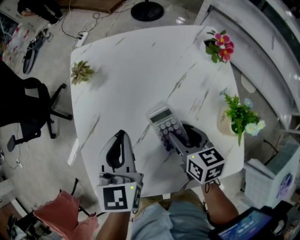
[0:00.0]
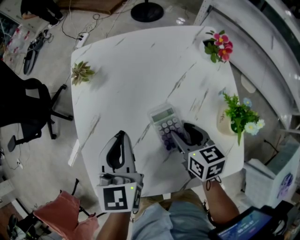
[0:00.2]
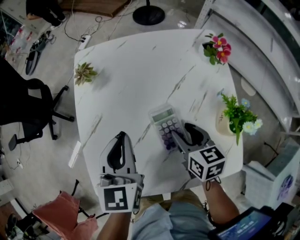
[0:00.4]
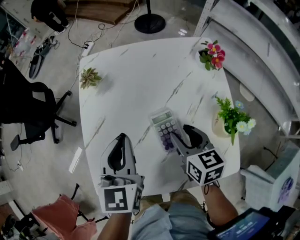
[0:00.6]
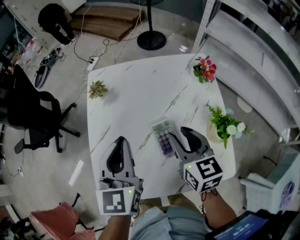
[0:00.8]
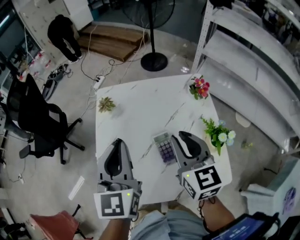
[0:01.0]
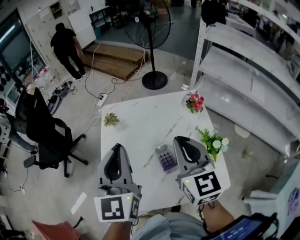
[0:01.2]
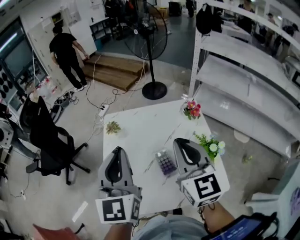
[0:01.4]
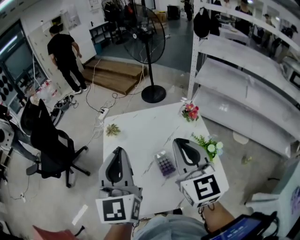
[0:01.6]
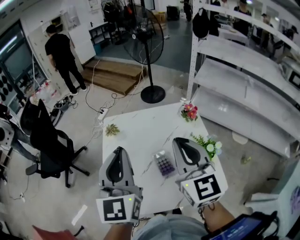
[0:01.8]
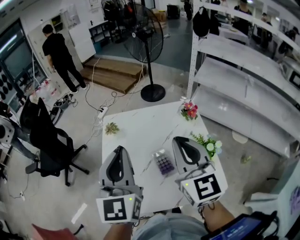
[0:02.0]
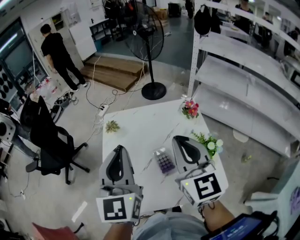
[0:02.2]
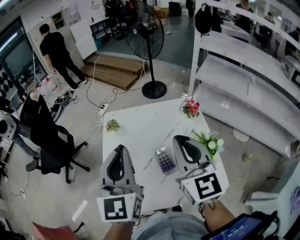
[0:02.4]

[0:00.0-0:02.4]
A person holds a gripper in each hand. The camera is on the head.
0:00.0 to 0:01.2: The two grippers go some 25 cm upward. The left gripper changes its angle by roughly 30 degrees, while the right gripper tips its fingers upward by roughly 30 degrees, and closes up.
0:01.2 to 0:02.4: The right gripper ends up approximately 5 cm from where it was.

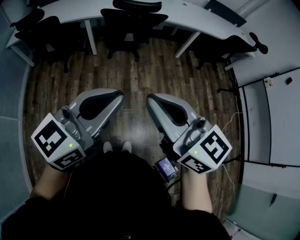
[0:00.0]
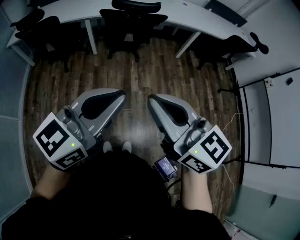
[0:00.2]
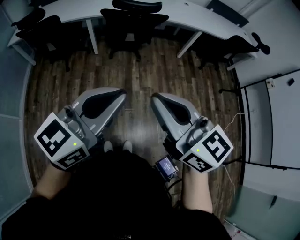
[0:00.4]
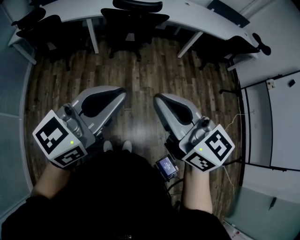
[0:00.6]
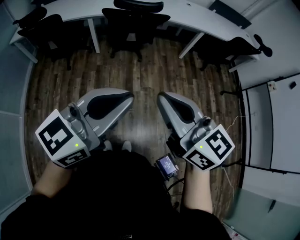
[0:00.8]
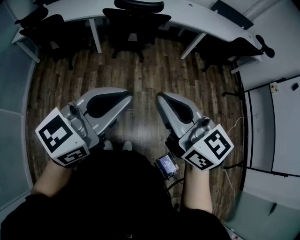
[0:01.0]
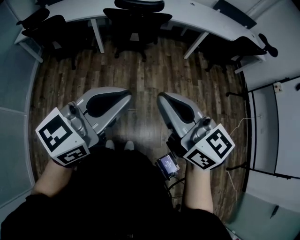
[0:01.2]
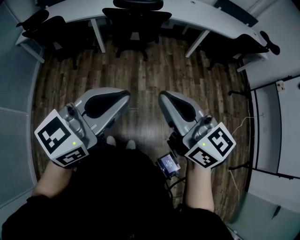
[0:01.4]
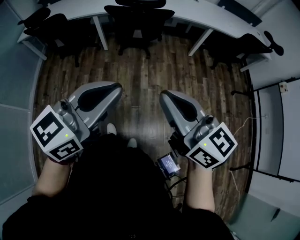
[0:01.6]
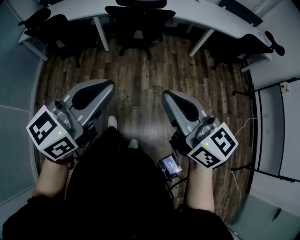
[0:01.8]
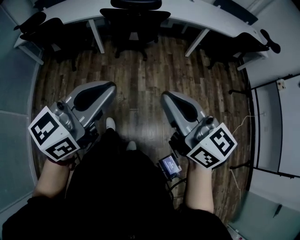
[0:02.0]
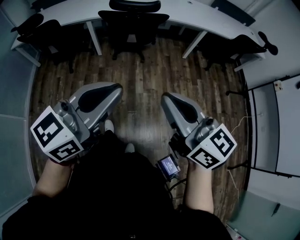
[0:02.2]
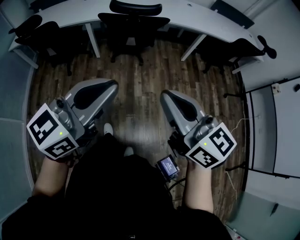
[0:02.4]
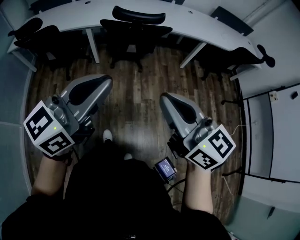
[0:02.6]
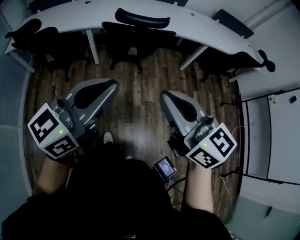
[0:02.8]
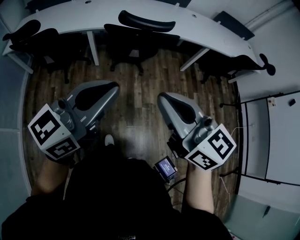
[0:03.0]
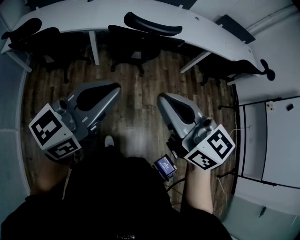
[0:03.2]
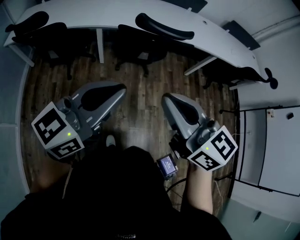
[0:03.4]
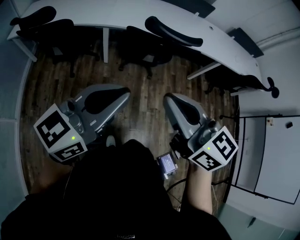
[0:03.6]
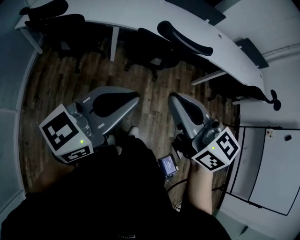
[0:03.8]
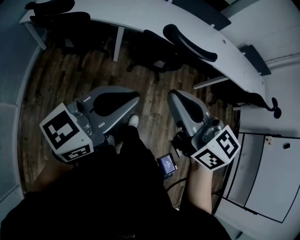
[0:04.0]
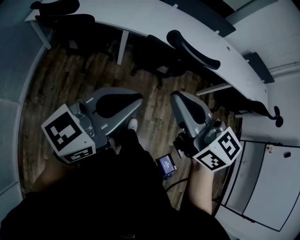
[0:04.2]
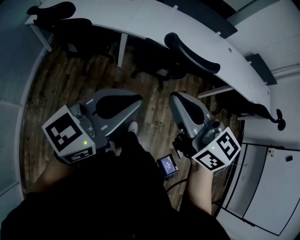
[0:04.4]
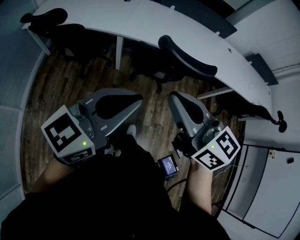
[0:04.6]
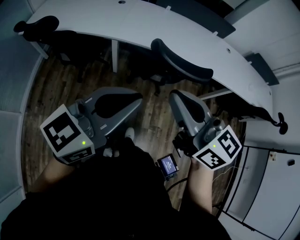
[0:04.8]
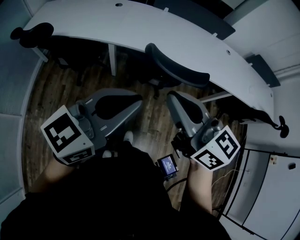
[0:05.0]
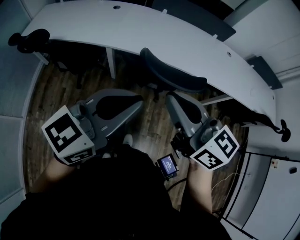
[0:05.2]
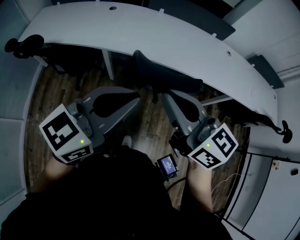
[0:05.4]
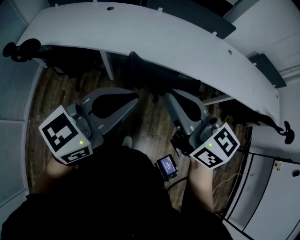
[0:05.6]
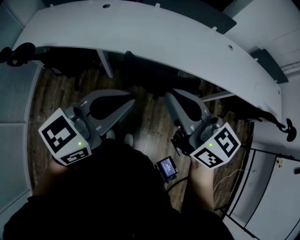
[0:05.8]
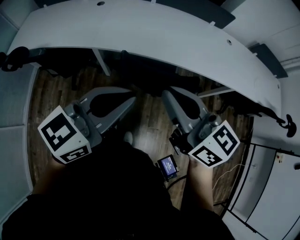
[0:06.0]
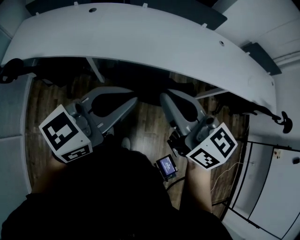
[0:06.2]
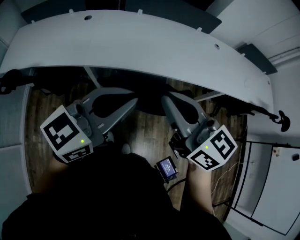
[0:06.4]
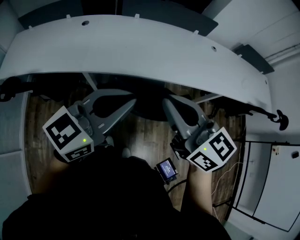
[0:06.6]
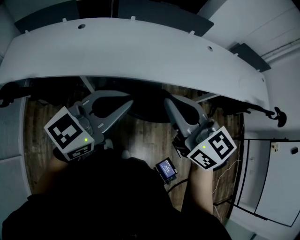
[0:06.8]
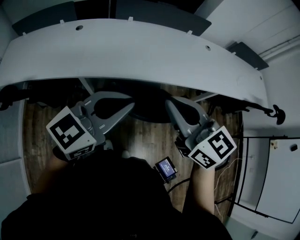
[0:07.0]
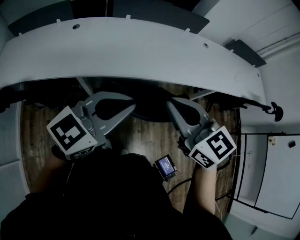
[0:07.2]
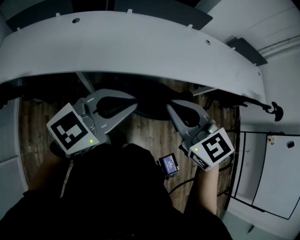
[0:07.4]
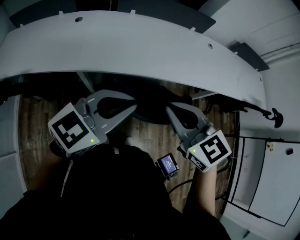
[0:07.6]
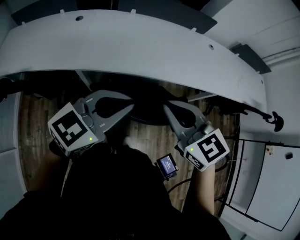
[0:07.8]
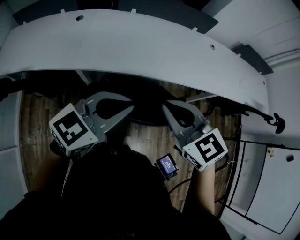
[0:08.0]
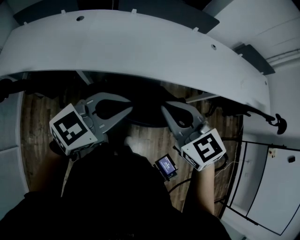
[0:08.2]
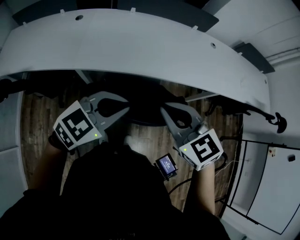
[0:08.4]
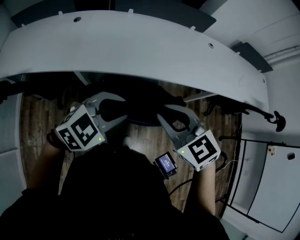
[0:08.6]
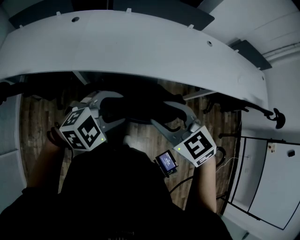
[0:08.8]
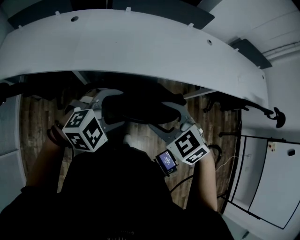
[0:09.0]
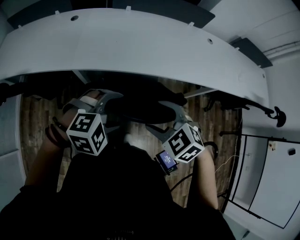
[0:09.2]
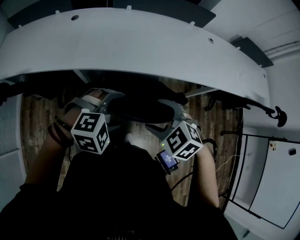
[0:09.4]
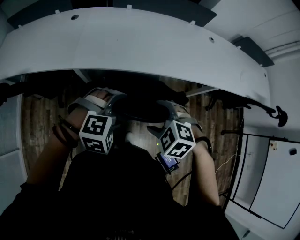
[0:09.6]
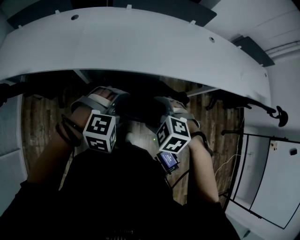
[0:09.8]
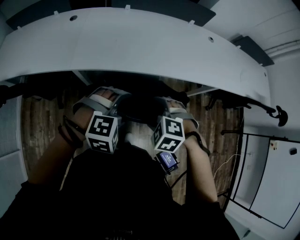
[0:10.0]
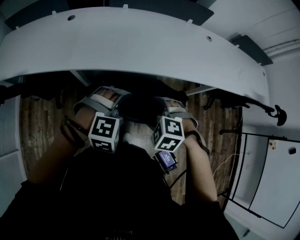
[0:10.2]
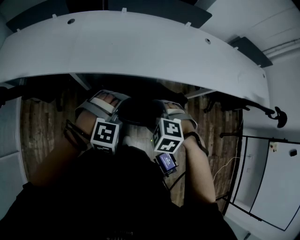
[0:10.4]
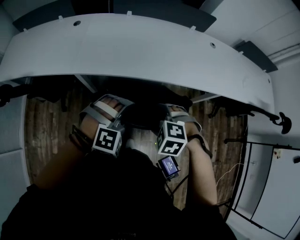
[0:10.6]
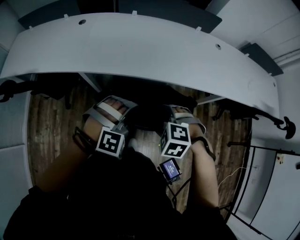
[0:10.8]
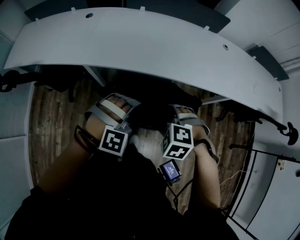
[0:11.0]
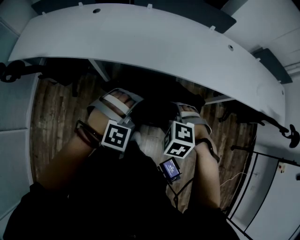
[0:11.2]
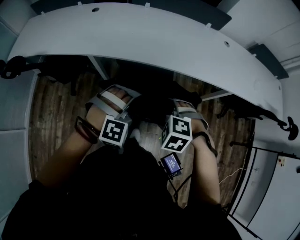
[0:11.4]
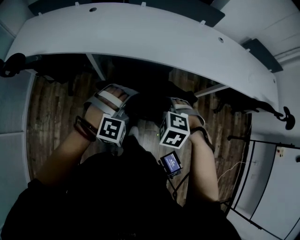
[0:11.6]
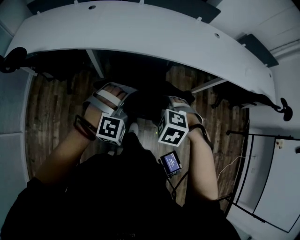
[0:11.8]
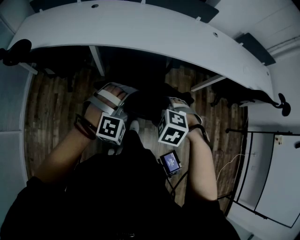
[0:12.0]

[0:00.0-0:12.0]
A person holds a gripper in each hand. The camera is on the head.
0:00.0 to 0:01.6: The right gripper shifts some 10 cm to the right, while the left gripper travels to the right by about 5 cm.
0:01.6 to 0:03.0: Both grippers move forward and to the left, about 25 cm.
0:03.0 to 0:04.4: Both grippers travel together forward and to the left, roughly 20 cm.
0:04.4 to 0:06.0: The grippers both shift forward and to the right by some 30 cm.
0:06.0 to 0:07.6: Both grippers travel together forward, approximately 10 cm. The right gripper rotates some 30 degrees.
0:07.6 to 0:09.0: The two grippers go some 10 cm downward. The left gripper tilts its fingers about 30 degrees downward, and opens up. Meanwhile the right gripper changes its angle by some 30 degrees, and opens.
0:09.0 to 0:10.4: The left gripper shifts roughly 5 cm downward, and rotates about 30 degrees; the right gripper shifts some 10 cm downward, and changes its angle by about 30 degrees.
0:10.4 to 0:12.0: The grippers both shift backward by approximately 20 cm. The left gripper closes up.

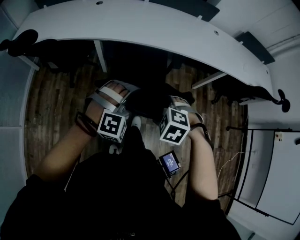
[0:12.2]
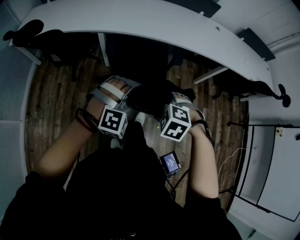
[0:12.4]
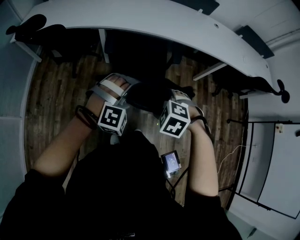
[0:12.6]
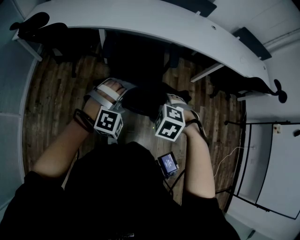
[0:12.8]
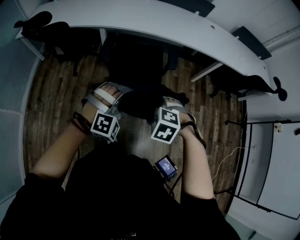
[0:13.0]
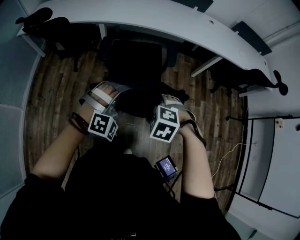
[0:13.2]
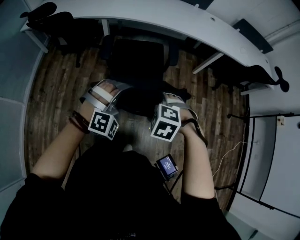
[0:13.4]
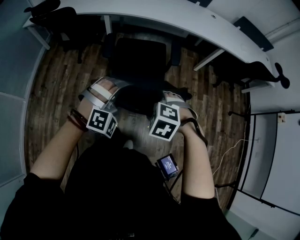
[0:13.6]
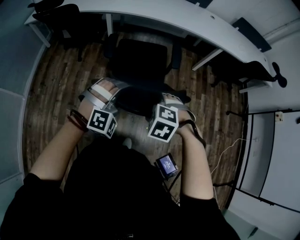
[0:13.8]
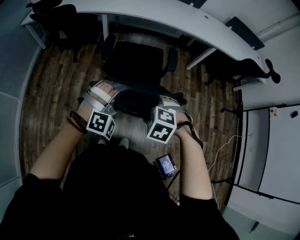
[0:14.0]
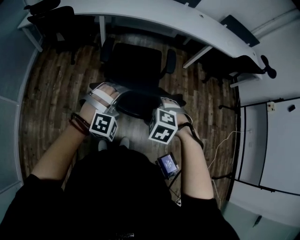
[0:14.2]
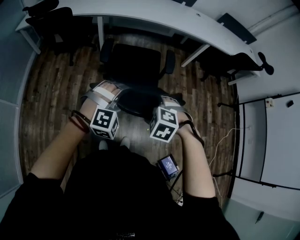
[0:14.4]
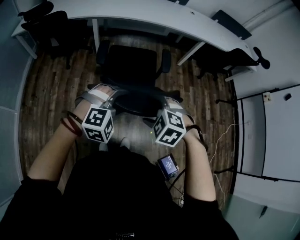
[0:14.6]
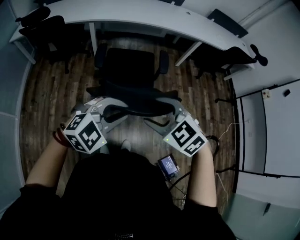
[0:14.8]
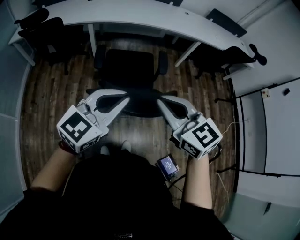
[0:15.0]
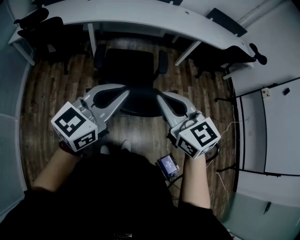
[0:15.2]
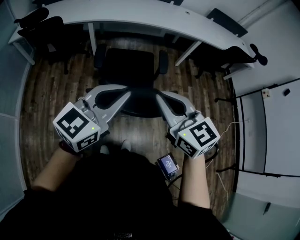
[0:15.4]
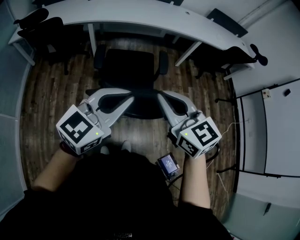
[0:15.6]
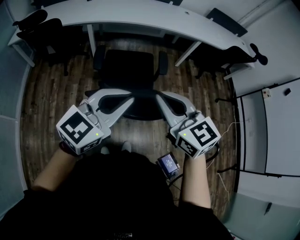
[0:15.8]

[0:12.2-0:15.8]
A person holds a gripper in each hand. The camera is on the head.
0:12.2 to 0:14.0: The grippers both shift backward by roughly 40 cm.
0:14.0 to 0:15.8: The two grippers go approximately 20 cm upward. The right gripper tilts its fingers approximately 50 degrees upward, and closes; the left gripper rolls counterclockwise, seen from behind, by roughly 60 degrees, and closes its fingers.

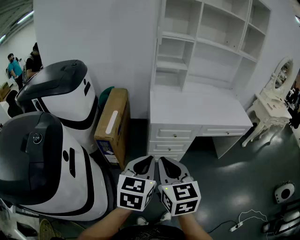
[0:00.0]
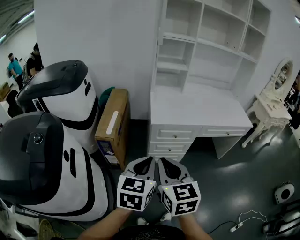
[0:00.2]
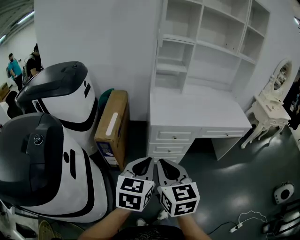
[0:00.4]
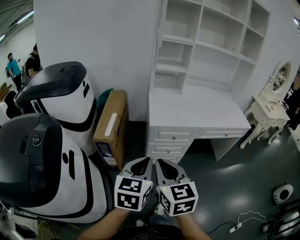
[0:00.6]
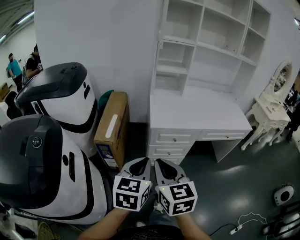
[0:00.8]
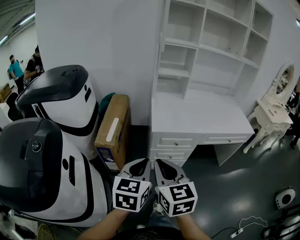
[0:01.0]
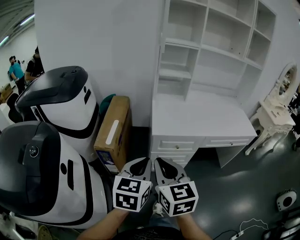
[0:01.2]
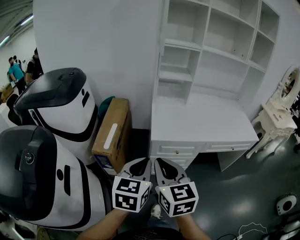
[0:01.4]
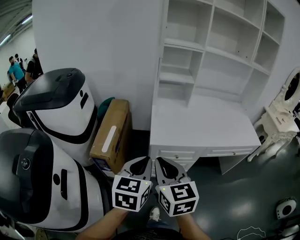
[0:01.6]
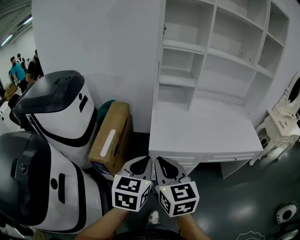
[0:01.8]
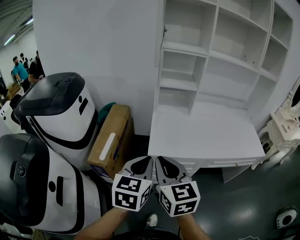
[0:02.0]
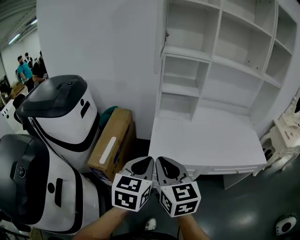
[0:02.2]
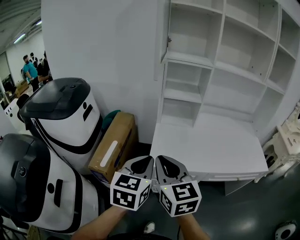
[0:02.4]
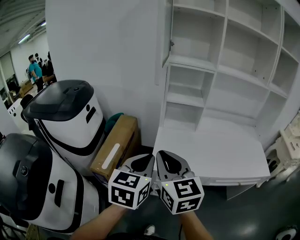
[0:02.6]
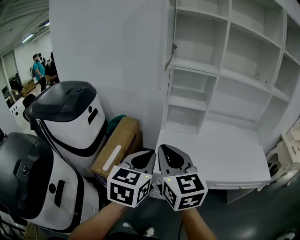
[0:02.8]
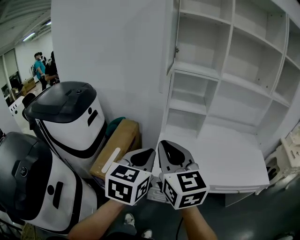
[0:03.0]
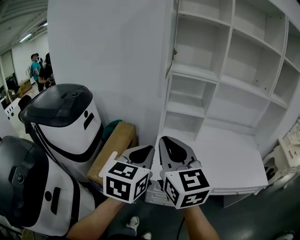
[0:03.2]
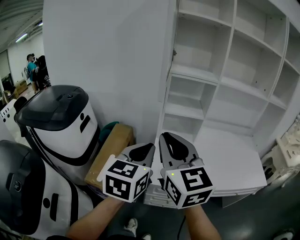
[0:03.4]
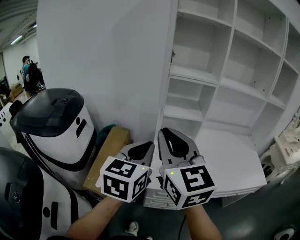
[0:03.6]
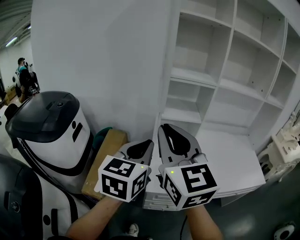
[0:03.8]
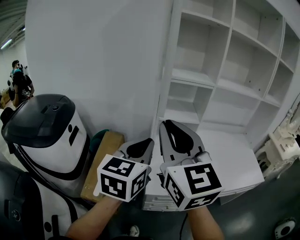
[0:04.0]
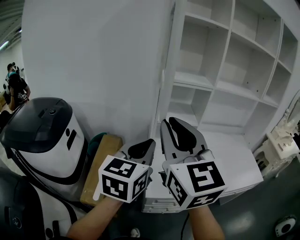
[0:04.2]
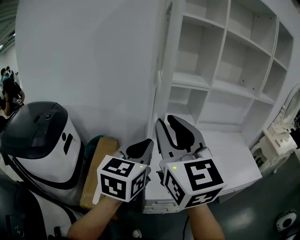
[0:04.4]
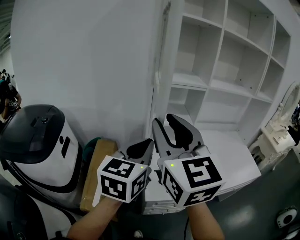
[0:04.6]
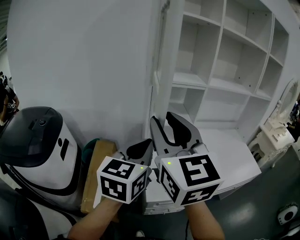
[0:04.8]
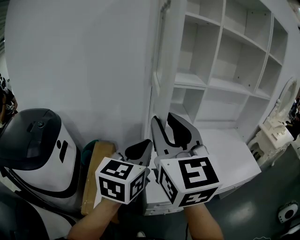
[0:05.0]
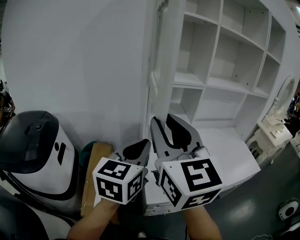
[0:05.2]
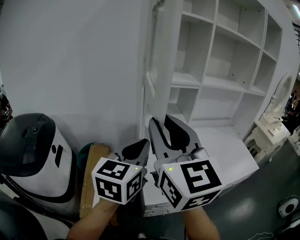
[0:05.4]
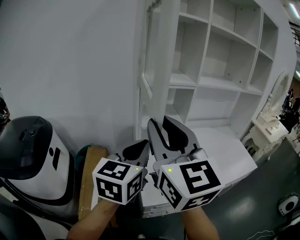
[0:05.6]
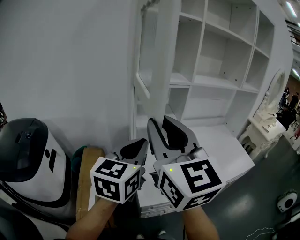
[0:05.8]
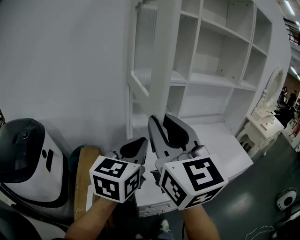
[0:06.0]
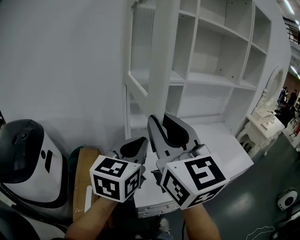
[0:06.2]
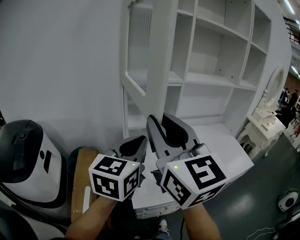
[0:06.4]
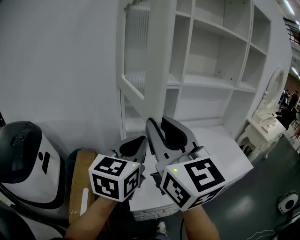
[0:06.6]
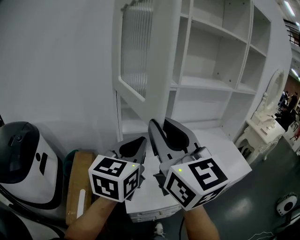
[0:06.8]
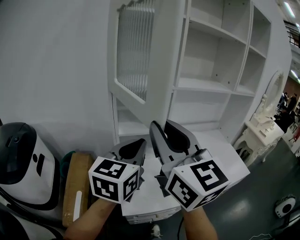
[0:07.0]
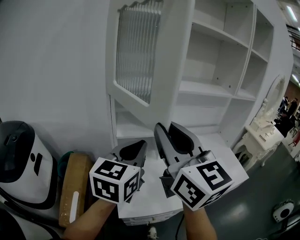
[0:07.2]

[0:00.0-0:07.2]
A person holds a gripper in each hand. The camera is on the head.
0:00.0 to 0:01.4: Both grippers travel together forward, about 10 cm.
0:01.4 to 0:02.8: The two grippers go about 20 cm forward and upward.
0:02.8 to 0:04.4: The left gripper travels forward and upward by about 20 cm. The right gripper is displaced upward and forward by approximately 20 cm.
0:04.4 to 0:05.8: The grippers move only a little.
0:05.8 to 0:07.2: Both grippers move to the right and forward, roughly 10 cm.
